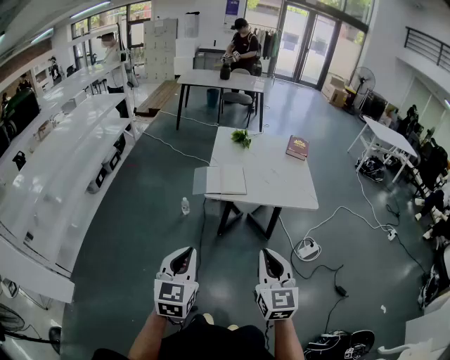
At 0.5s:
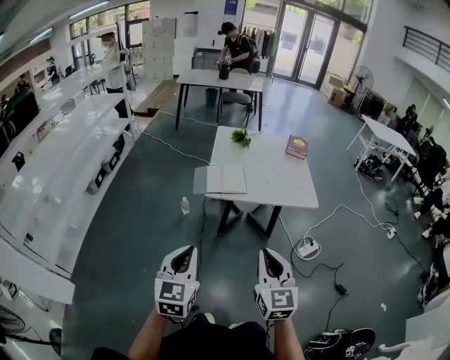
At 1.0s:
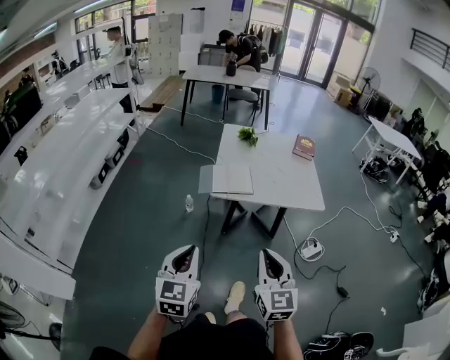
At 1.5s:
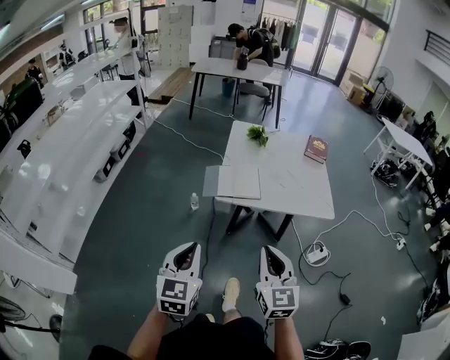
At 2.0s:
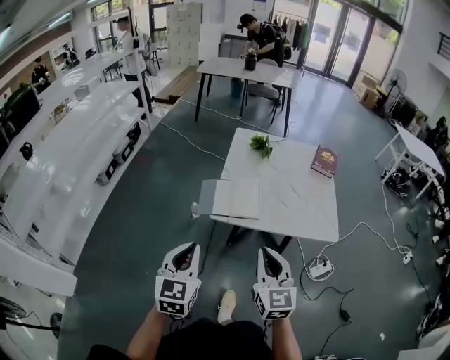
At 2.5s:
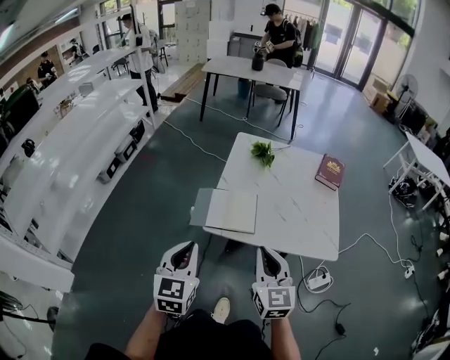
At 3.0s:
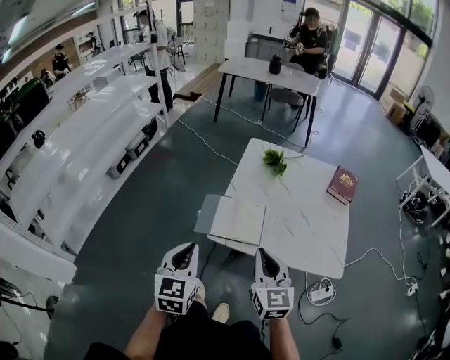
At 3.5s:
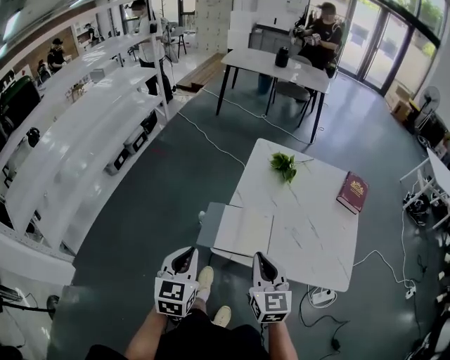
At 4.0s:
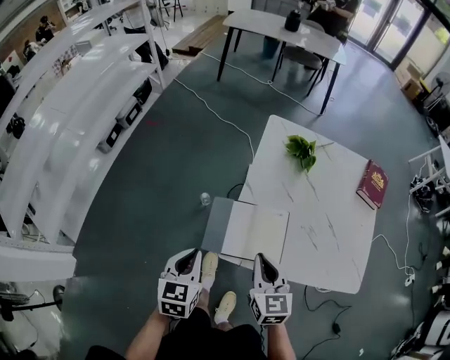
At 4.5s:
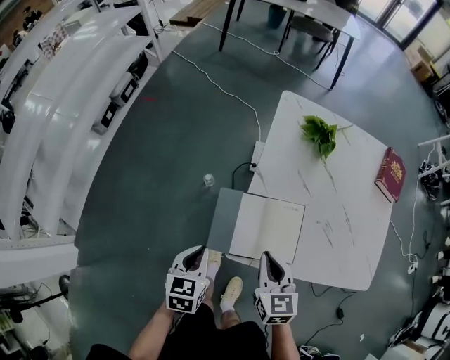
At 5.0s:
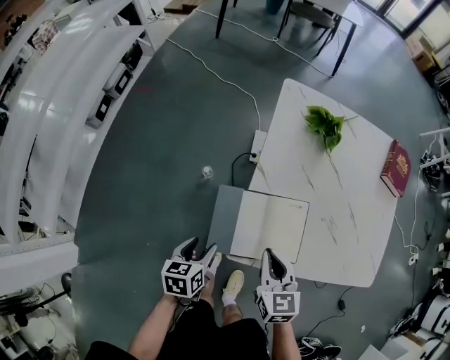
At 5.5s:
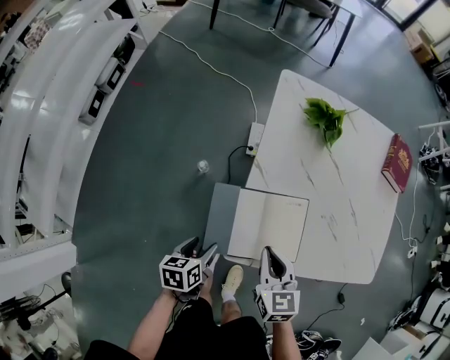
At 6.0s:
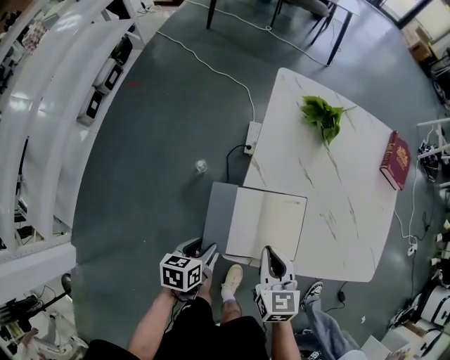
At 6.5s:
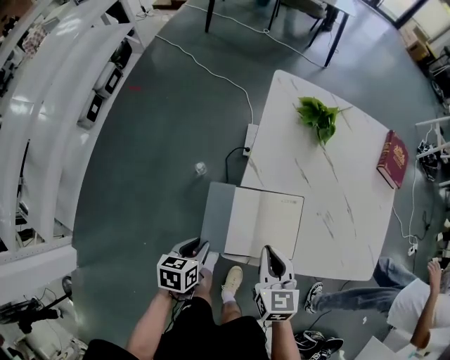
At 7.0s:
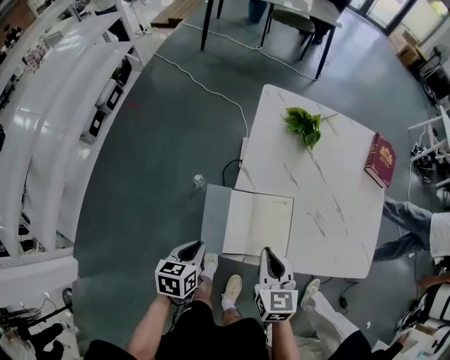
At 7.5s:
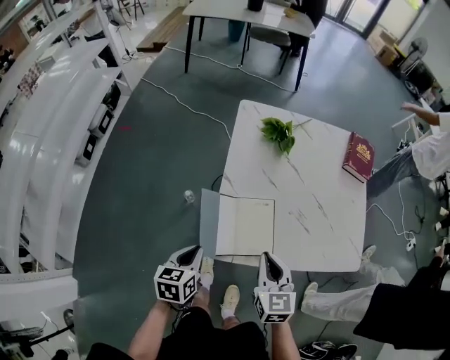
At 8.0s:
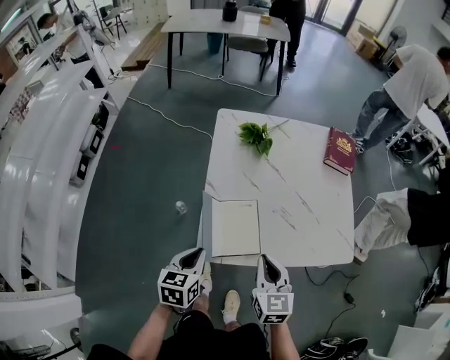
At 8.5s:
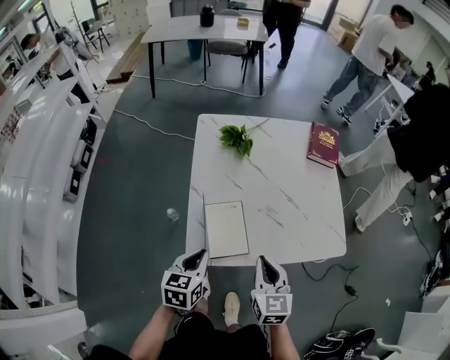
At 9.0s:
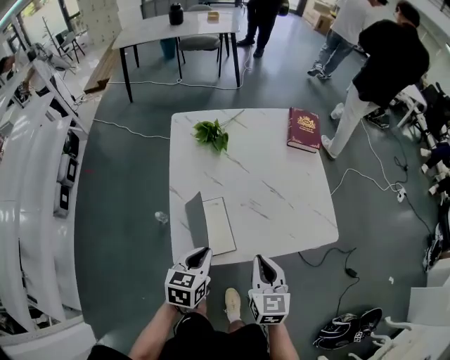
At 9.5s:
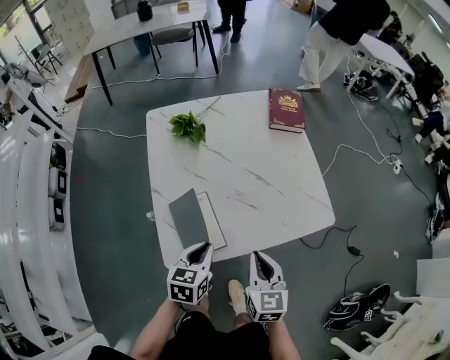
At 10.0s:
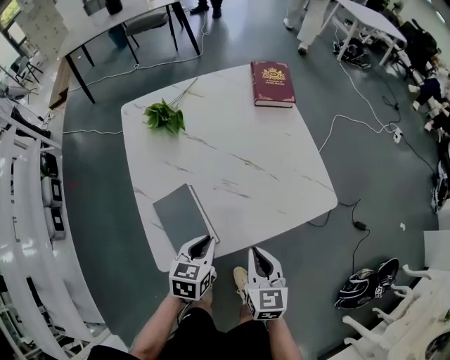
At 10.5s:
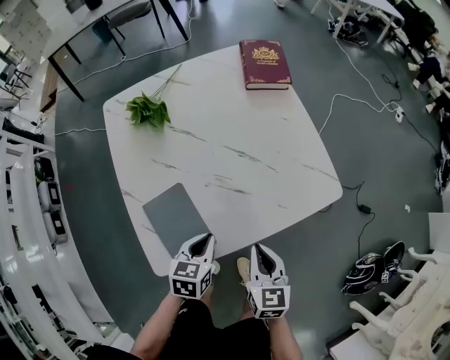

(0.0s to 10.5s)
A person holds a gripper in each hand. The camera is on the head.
0.0s - 2.0s: Both grippers move forward, some 25 cm.
2.0s - 4.0s: The two grippers go some 35 cm forward and downward. The left gripper changes its angle by approximately 20 degrees.
4.0s - 6.5s: The left gripper shifts roughly 20 cm downward, swivels approximately 30 degrees, and opens up, while the right gripper shifts roughly 10 cm downward.
6.5s - 8.5s: The right gripper moves to the right and upward, approximately 20 cm; the left gripper heads upward and to the right, covering roughly 25 cm, and changes its angle by some 30 degrees.
8.5s - 10.5s: The left gripper travels to the right, downward and forward by approximately 25 cm, and rotates approximately 30 degrees. The right gripper heads downward and to the right, covering some 15 cm, and turns by roughly 20 degrees.

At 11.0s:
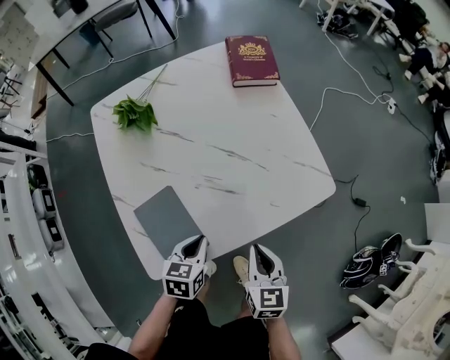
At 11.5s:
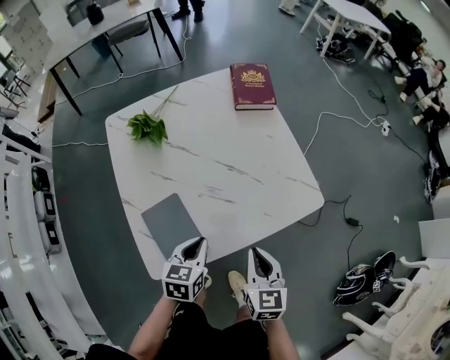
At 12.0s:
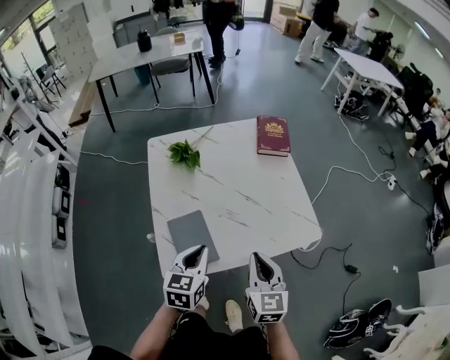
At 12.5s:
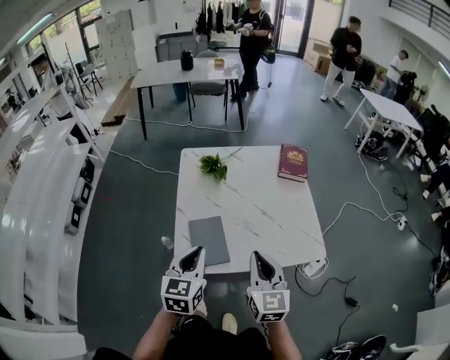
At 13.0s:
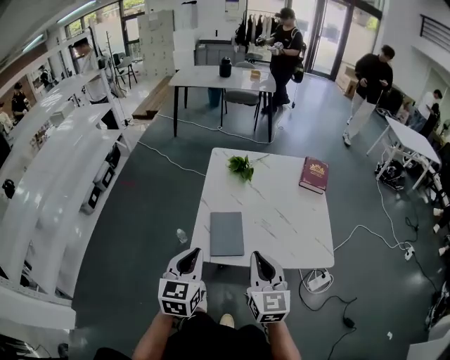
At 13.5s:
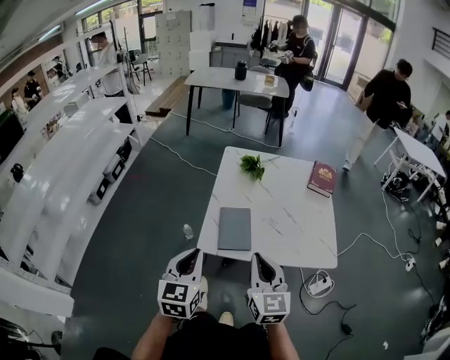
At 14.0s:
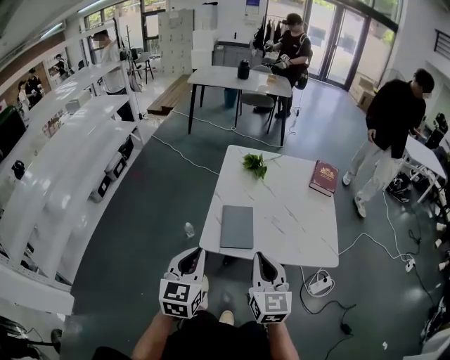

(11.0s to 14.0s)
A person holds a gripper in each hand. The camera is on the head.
11.0s - 12.5s: The two grippers go roughly 30 cm upward. The left gripper changes its angle by about 40 degrees; the right gripper turns by approximately 30 degrees.
12.5s - 14.0s: The grippers both shift backward and to the left by some 15 cm.

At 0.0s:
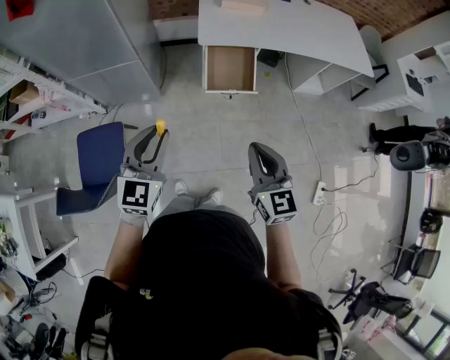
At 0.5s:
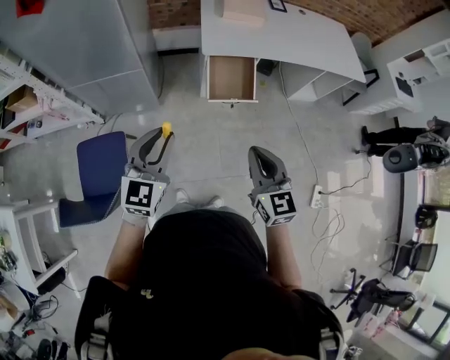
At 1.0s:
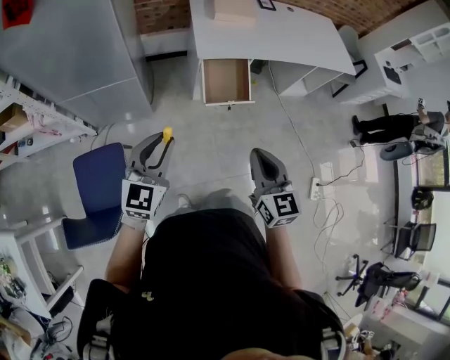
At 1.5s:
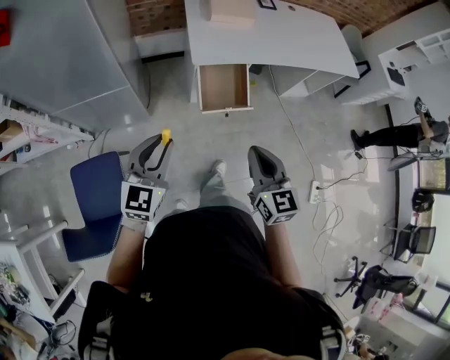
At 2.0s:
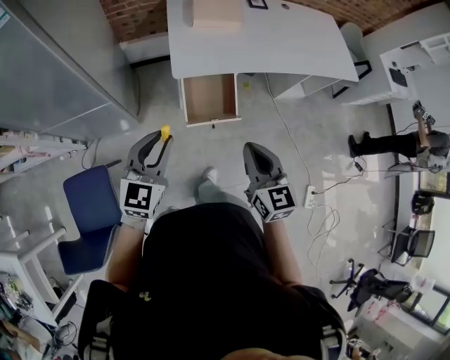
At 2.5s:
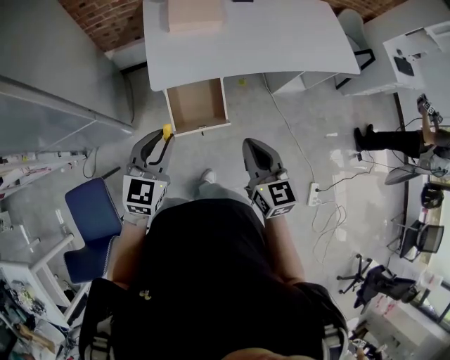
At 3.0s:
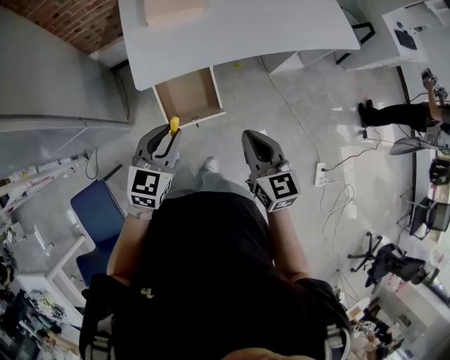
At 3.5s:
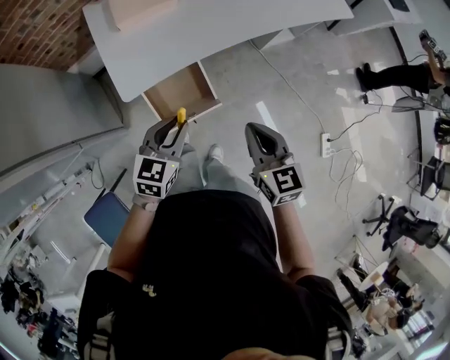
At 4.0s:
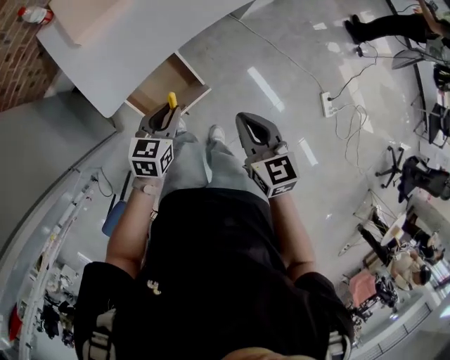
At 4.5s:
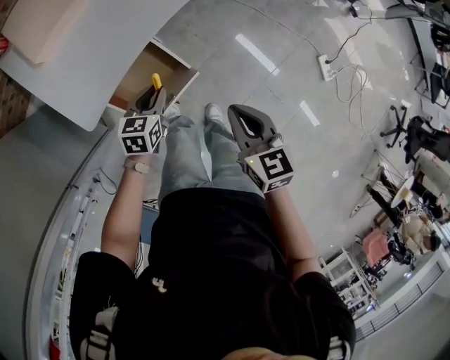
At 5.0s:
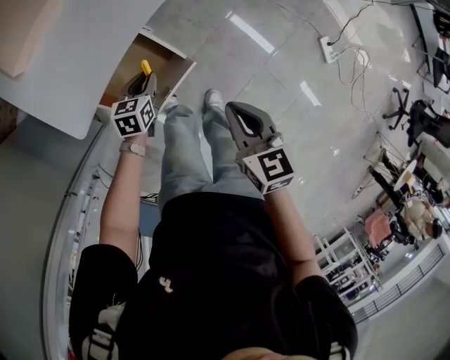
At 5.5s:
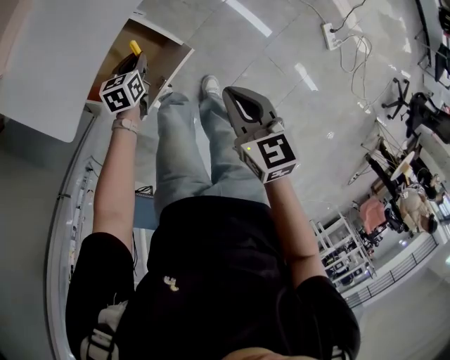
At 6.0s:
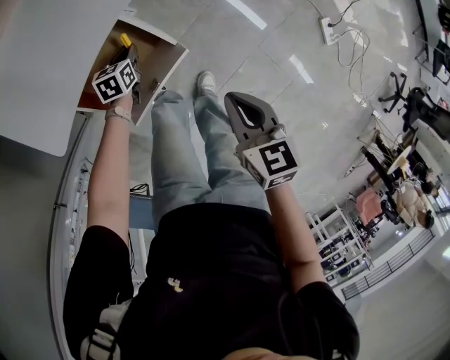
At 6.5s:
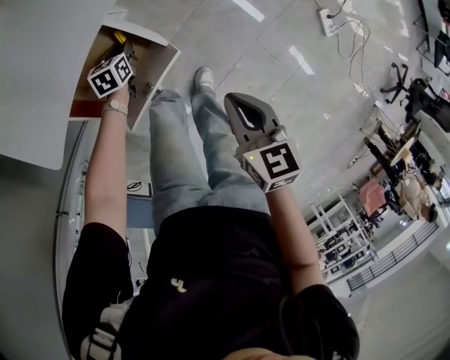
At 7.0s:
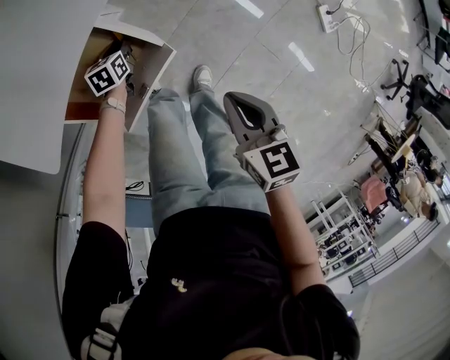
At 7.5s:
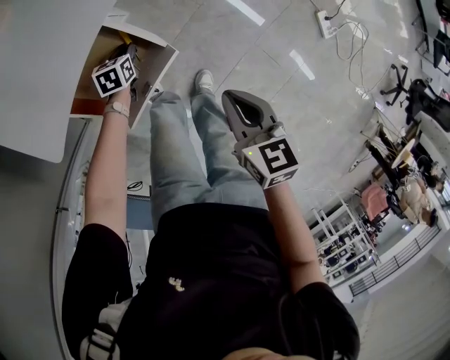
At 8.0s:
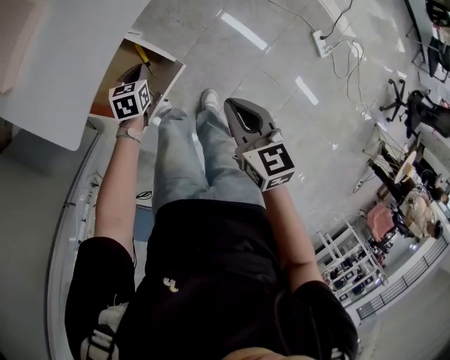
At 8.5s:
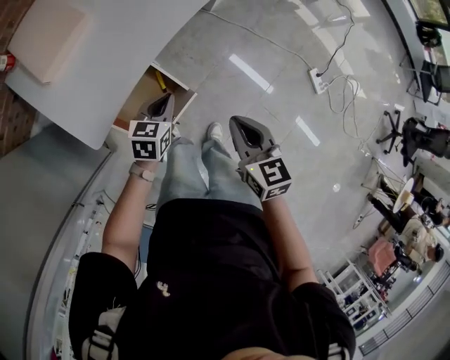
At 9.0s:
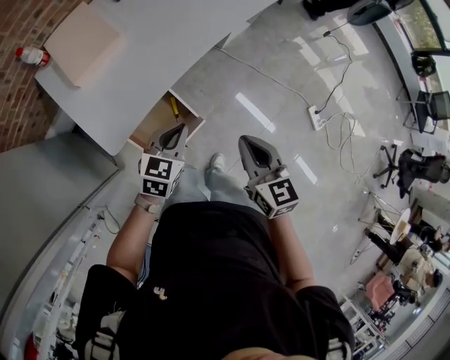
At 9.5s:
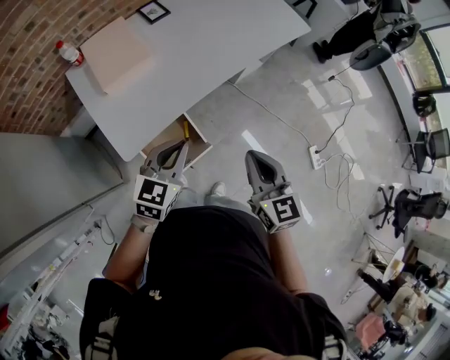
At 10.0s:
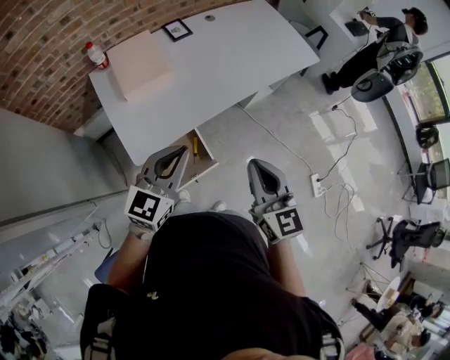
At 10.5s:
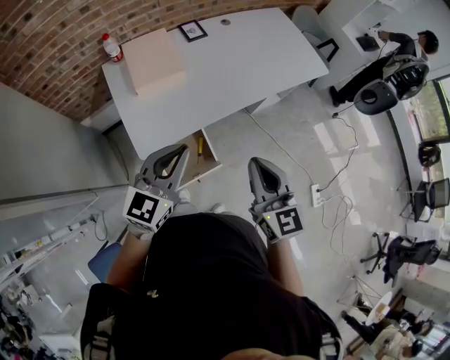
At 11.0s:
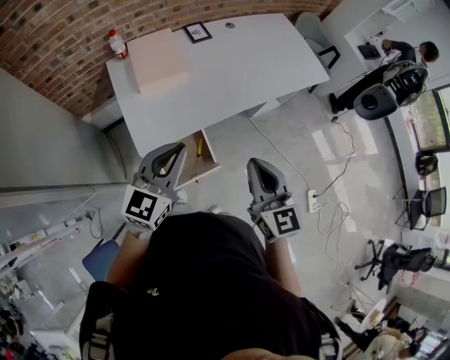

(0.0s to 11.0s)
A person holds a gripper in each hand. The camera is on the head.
0.0s - 2.0s: The grippers both shift forward by roughly 20 cm.
2.0s - 3.5s: Both grippers move forward, to the right and downward, about 25 cm. The left gripper turns by approximately 30 degrees.
3.5s - 5.5s: The left gripper travels downward by approximately 40 cm, and rotates approximately 30 degrees. The right gripper heads downward, covering some 20 cm, and swivels approximately 30 degrees.
5.5s - 7.5s: The left gripper moves downward, some 10 cm.
7.5s - 9.0s: The right gripper travels upward by some 25 cm, and rotates roughly 20 degrees, while the left gripper is displaced upward by roughly 50 cm, and swivels approximately 30 degrees.
9.0s - 11.0s: The two grippers go some 20 cm upward. The right gripper turns by about 30 degrees; the left gripper rotates approximately 30 degrees.

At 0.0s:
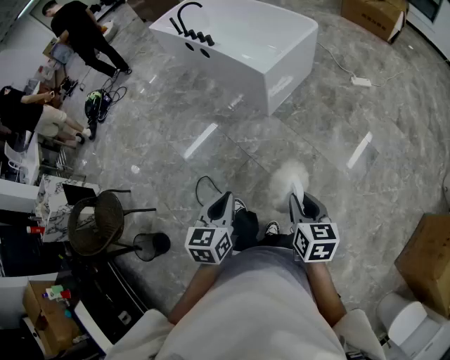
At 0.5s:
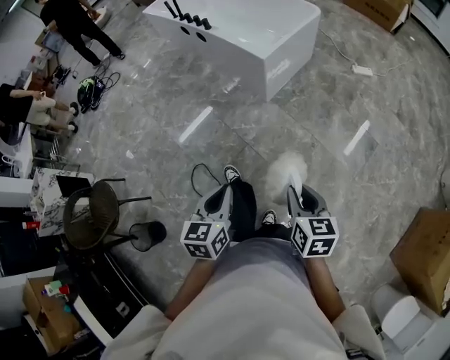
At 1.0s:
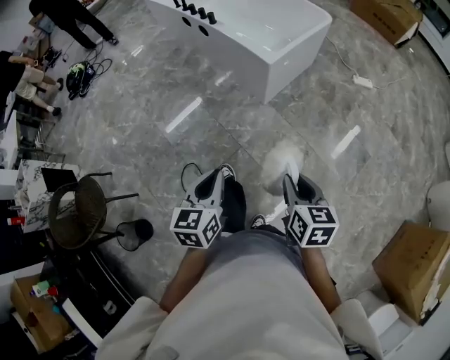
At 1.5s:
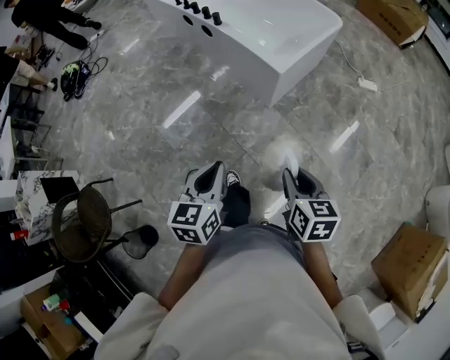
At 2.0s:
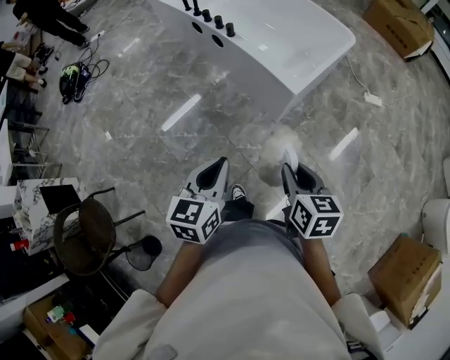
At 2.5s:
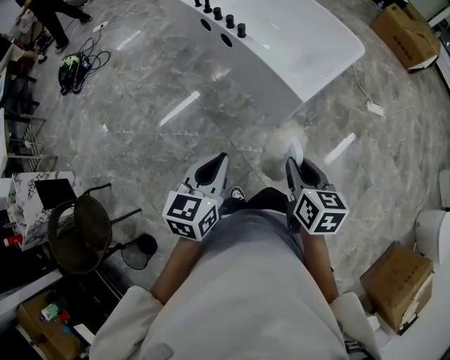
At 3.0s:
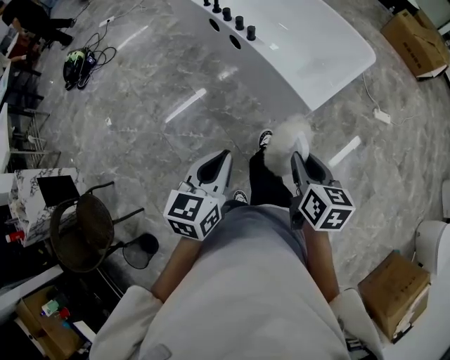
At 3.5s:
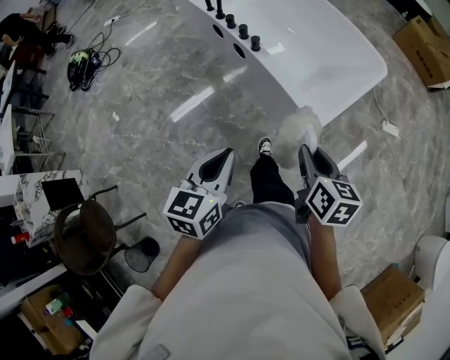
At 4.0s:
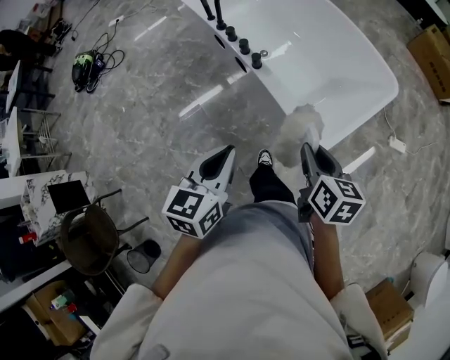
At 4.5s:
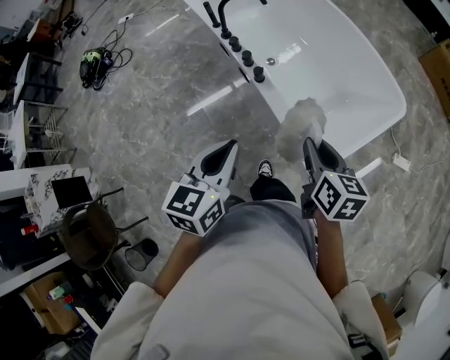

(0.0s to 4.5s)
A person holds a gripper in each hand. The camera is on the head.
0.0s - 2.0s: The grippers both shift forward and to the left by approximately 40 cm.
2.0s - 4.5s: The pair of grippers is taken forward, roughly 40 cm.
